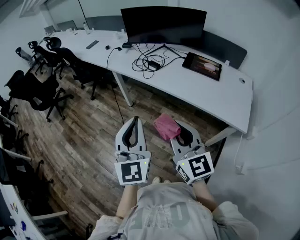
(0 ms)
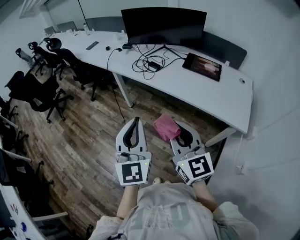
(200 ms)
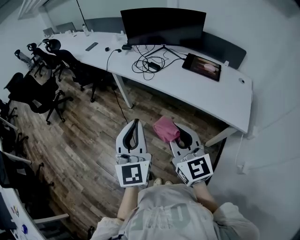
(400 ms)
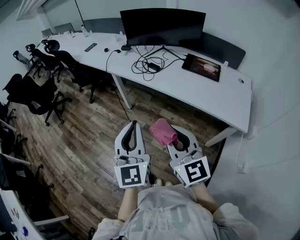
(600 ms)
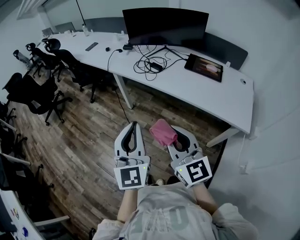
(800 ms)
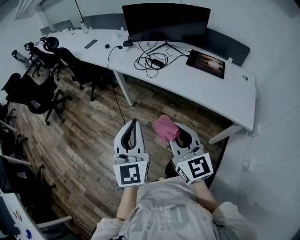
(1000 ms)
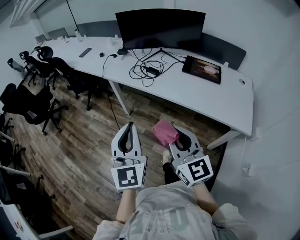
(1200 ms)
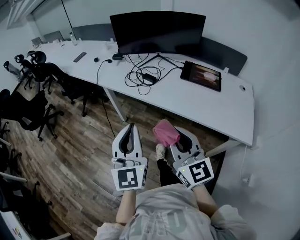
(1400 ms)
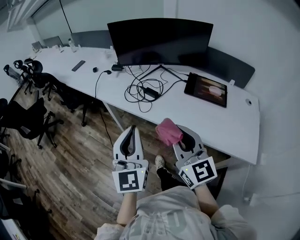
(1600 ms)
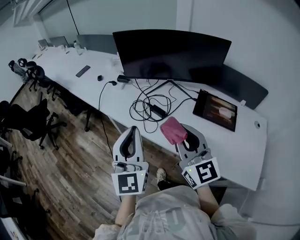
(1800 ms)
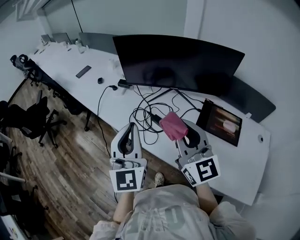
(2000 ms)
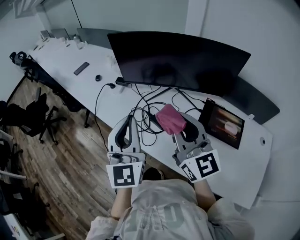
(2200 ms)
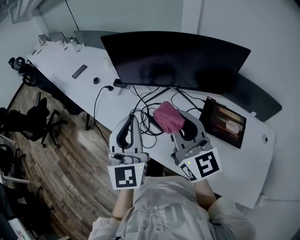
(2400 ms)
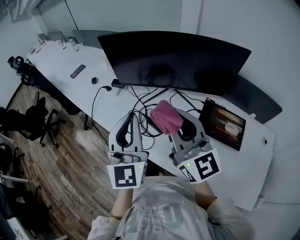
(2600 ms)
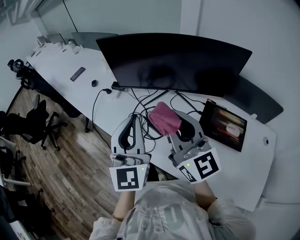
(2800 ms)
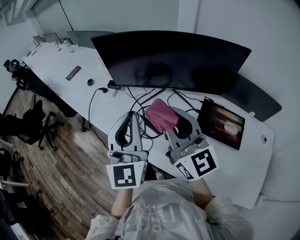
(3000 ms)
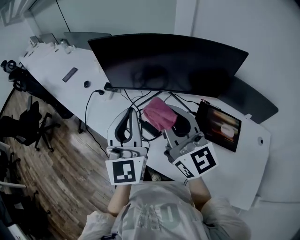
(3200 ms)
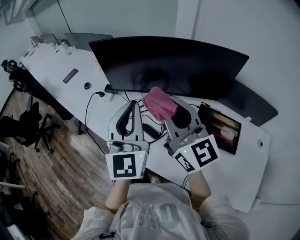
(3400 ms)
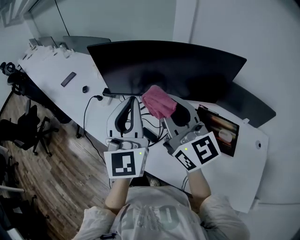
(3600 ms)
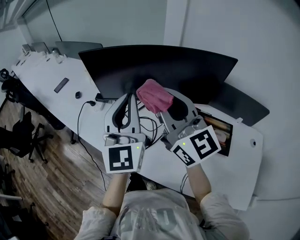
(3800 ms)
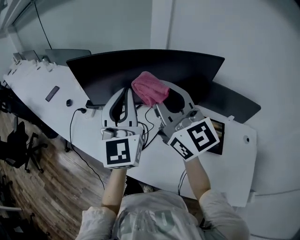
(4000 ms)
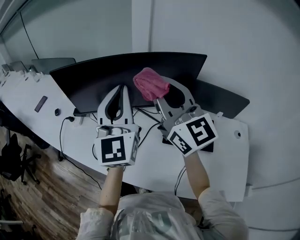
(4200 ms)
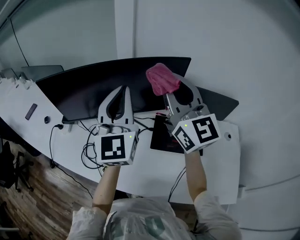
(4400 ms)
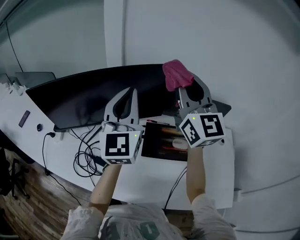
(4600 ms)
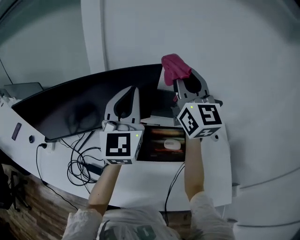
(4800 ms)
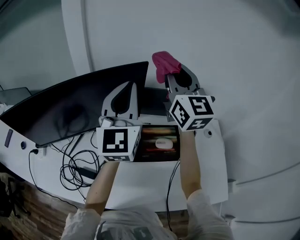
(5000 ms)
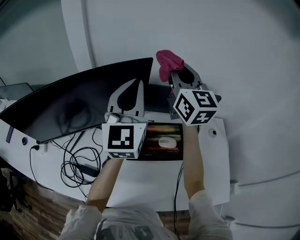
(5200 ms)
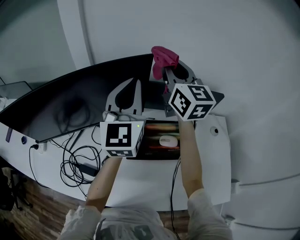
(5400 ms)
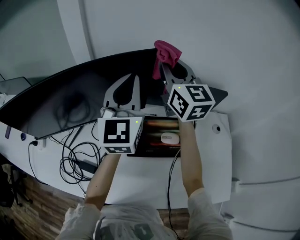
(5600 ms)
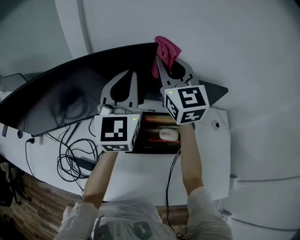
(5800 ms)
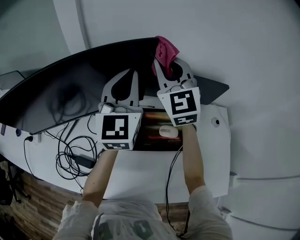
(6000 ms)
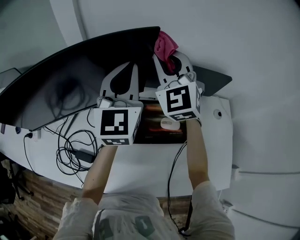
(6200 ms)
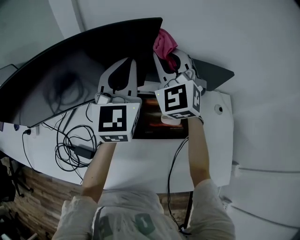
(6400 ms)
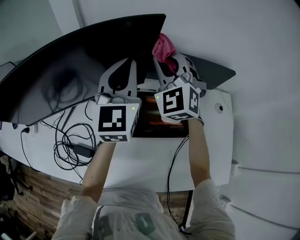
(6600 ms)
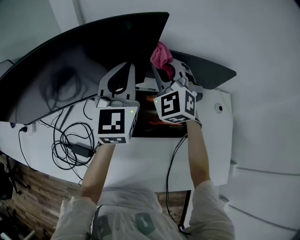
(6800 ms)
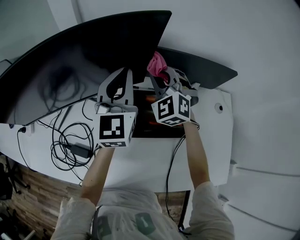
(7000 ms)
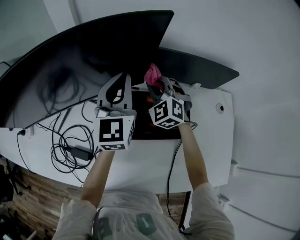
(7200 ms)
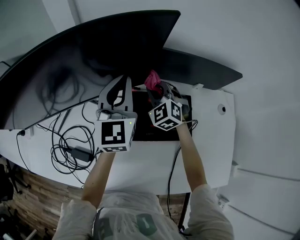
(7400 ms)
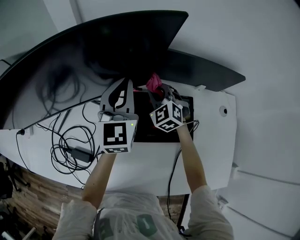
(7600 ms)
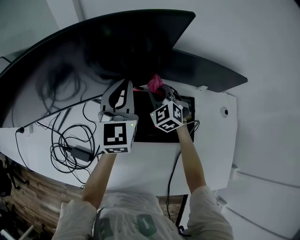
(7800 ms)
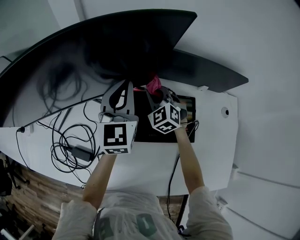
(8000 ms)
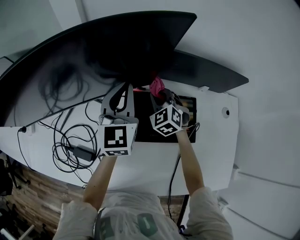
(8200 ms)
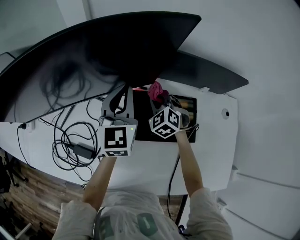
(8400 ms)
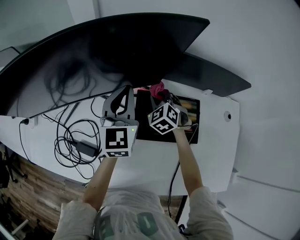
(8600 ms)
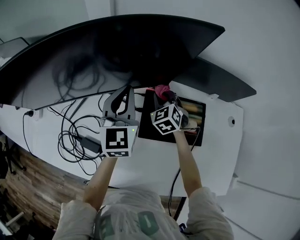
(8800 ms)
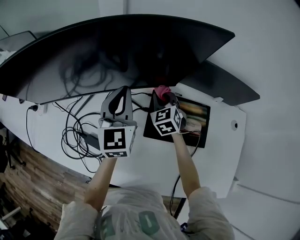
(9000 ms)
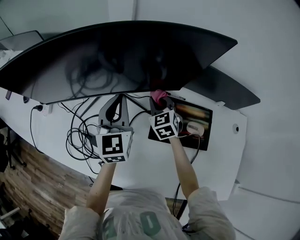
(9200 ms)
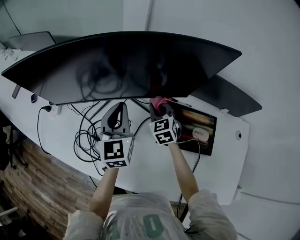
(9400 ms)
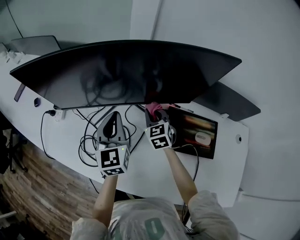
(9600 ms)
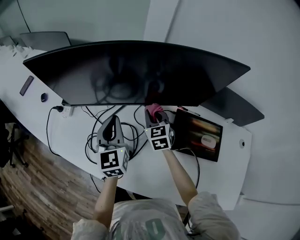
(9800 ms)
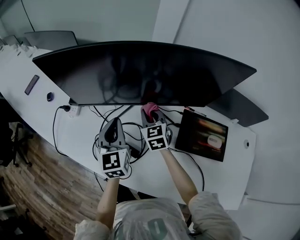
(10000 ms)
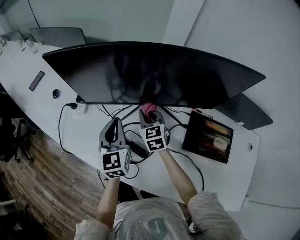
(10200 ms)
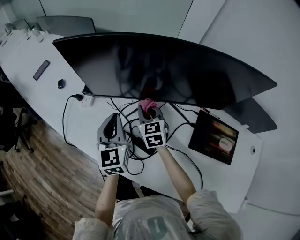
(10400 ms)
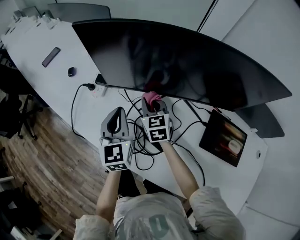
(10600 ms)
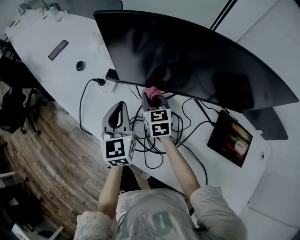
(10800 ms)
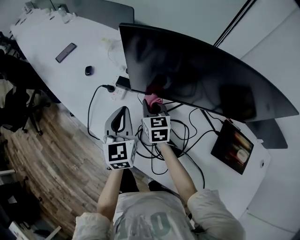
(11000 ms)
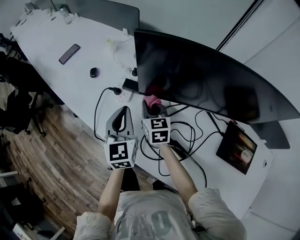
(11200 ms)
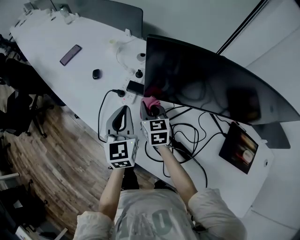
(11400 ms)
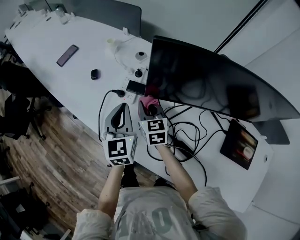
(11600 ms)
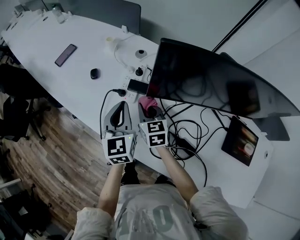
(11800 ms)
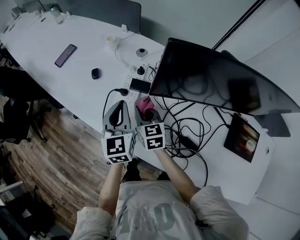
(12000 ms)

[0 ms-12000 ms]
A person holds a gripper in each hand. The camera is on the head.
0 ms to 1600 ms: The two grippers go approximately 25 cm forward.
1600 ms to 3000 ms: Both grippers travel together forward, about 30 cm.
3000 ms to 4400 ms: The right gripper is displaced to the right and upward by some 25 cm, and rotates roughly 20 degrees; the left gripper travels to the right, forward and upward by some 20 cm.
4400 ms to 6000 ms: The left gripper goes about 25 cm to the right, forward and downward, while the right gripper moves forward, to the right and downward, about 25 cm, and swivels some 30 degrees.
6000 ms to 7600 ms: The left gripper goes roughly 15 cm downward, while the right gripper shifts about 30 cm downward, and angles its fingers downward, by some 40 degrees.
7600 ms to 9000 ms: The two grippers go roughly 10 cm to the left.
9000 ms to 10400 ms: Both grippers travel together to the left, some 30 cm. The left gripper swivels about 20 degrees, while the right gripper rotates about 20 degrees.
10400 ms to 12000 ms: The left gripper travels to the left and forward by some 20 cm. Meanwhile the right gripper shifts roughly 25 cm to the left.

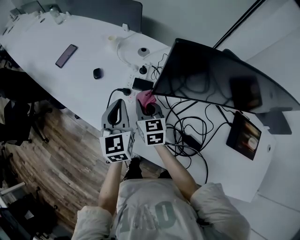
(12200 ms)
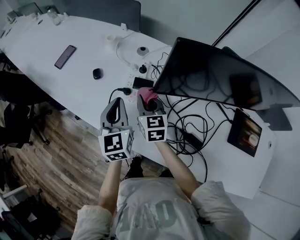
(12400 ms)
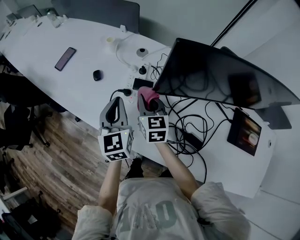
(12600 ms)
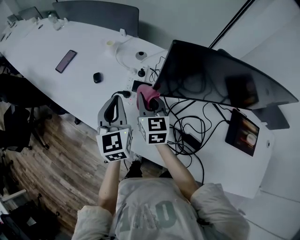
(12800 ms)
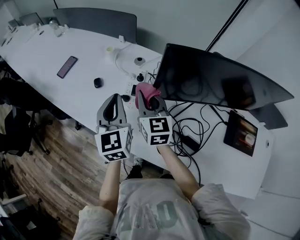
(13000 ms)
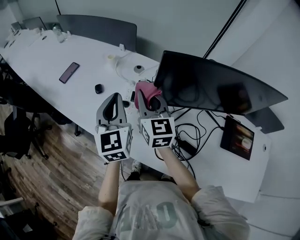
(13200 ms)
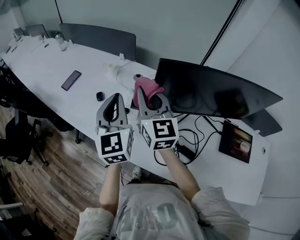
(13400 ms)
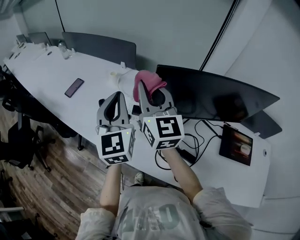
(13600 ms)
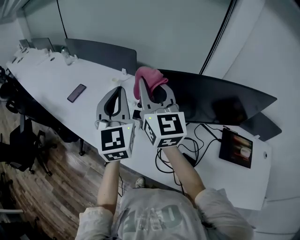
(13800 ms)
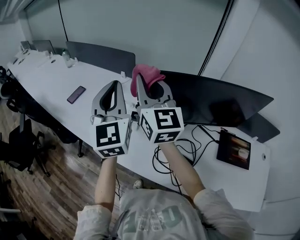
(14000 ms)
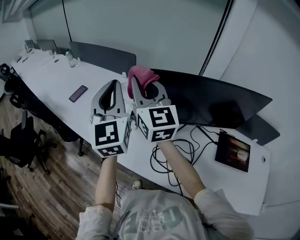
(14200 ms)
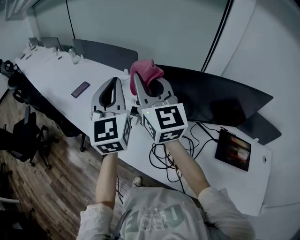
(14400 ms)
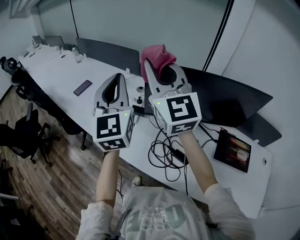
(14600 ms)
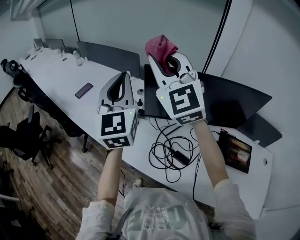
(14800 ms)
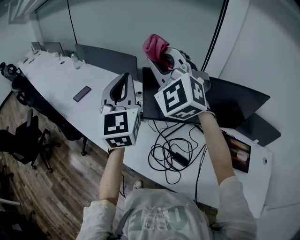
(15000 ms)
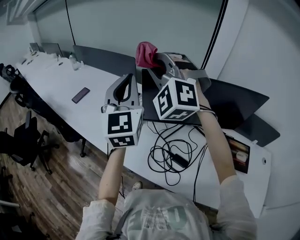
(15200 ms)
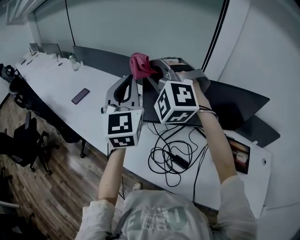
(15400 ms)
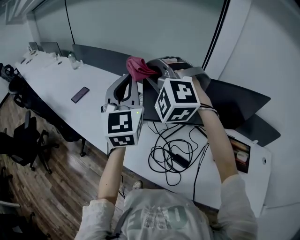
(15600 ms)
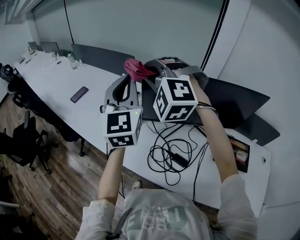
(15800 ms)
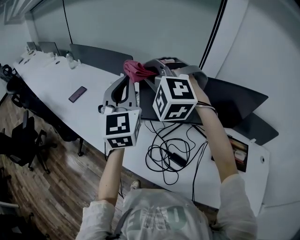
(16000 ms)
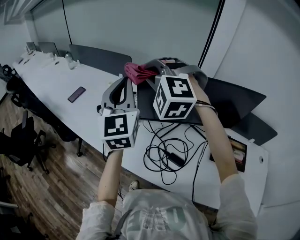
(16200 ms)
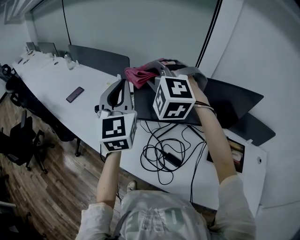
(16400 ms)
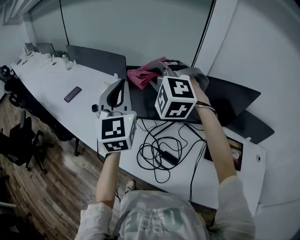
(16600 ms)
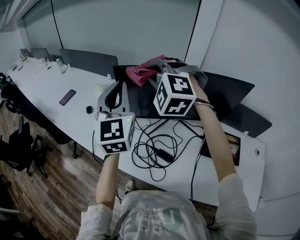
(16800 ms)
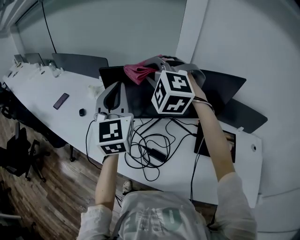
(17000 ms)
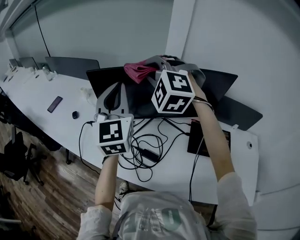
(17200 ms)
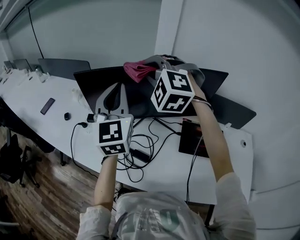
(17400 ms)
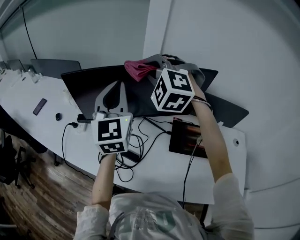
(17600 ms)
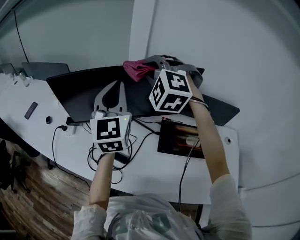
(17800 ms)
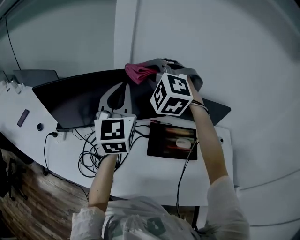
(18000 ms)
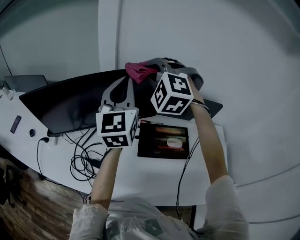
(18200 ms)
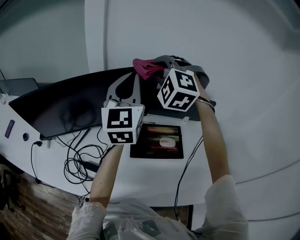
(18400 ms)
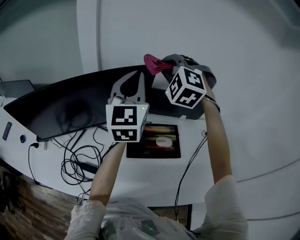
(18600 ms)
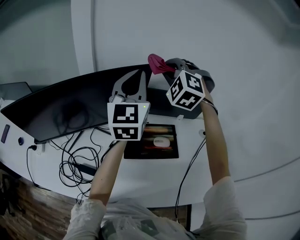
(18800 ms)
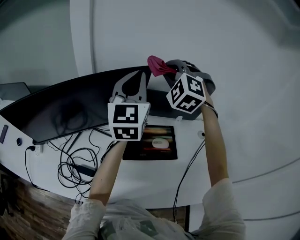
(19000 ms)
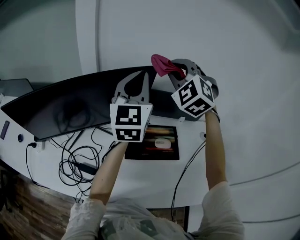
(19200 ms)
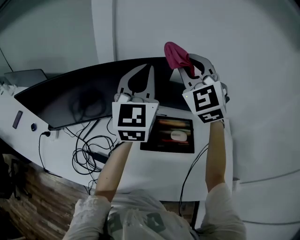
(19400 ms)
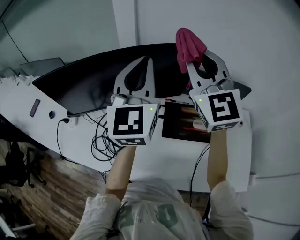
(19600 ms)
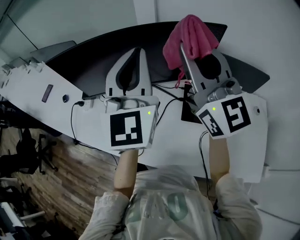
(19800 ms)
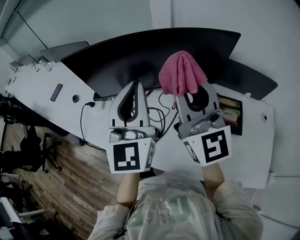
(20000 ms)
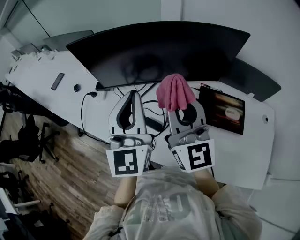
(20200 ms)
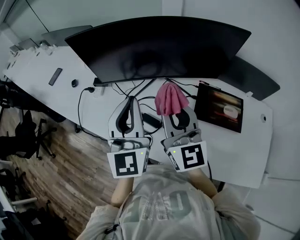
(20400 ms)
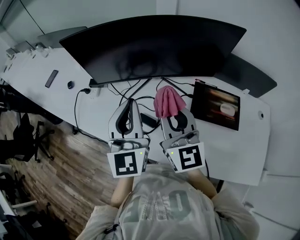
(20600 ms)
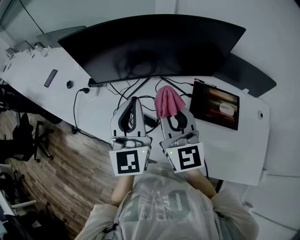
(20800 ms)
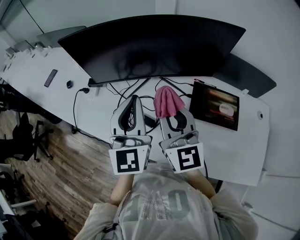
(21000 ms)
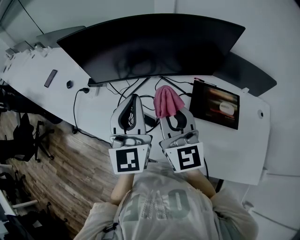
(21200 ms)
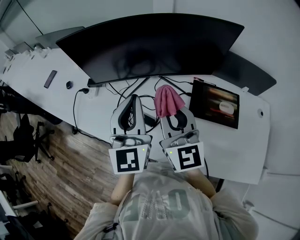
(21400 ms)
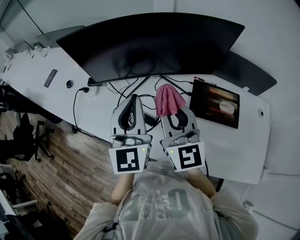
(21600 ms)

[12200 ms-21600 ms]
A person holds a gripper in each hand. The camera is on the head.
12200 ms to 13800 ms: Both grippers travel together upward, about 30 cm. The right gripper angles its fingers upward, by about 40 degrees; the left gripper rotates approximately 20 degrees.
13800 ms to 15400 ms: The left gripper shifts about 10 cm to the right and upward. The right gripper goes upward and returns, approximately 10 cm each way, and twists approximately 80 degrees counterclockwise, seen from behind.
15400 ms to 17000 ms: The two grippers go approximately 10 cm to the right.
17000 ms to 18400 ms: The grippers both shift to the right by some 40 cm. The left gripper turns by some 30 degrees, while the right gripper swivels approximately 20 degrees.
18400 ms to 20000 ms: The right gripper goes upward and returns, roughly 5 cm each way, and tilts its fingers roughly 50 degrees upward; the left gripper shifts by about 25 cm.
20000 ms to 21600 ms: Both grippers move downward, approximately 10 cm.

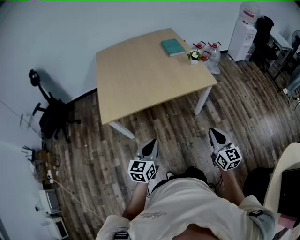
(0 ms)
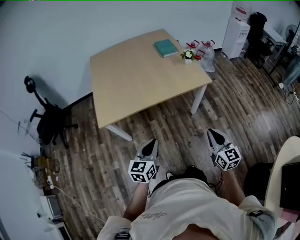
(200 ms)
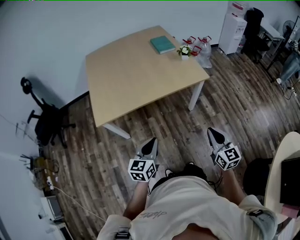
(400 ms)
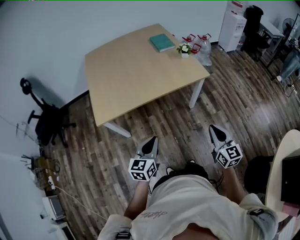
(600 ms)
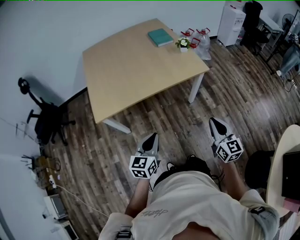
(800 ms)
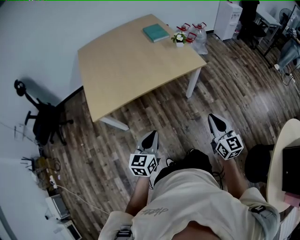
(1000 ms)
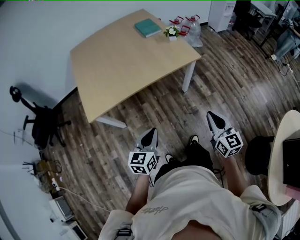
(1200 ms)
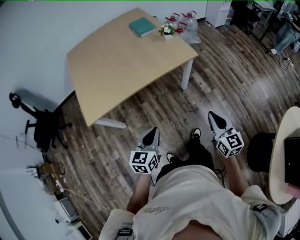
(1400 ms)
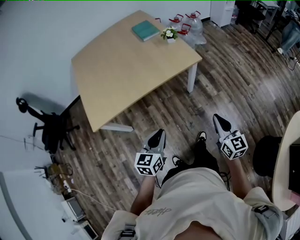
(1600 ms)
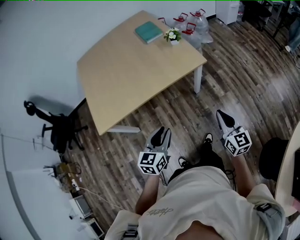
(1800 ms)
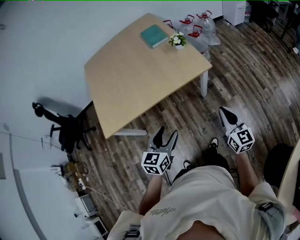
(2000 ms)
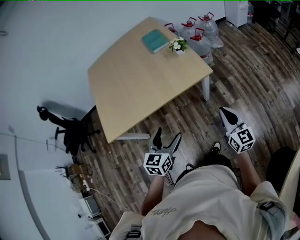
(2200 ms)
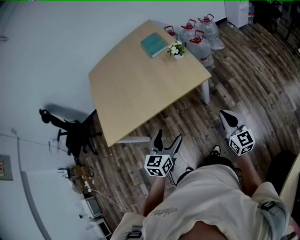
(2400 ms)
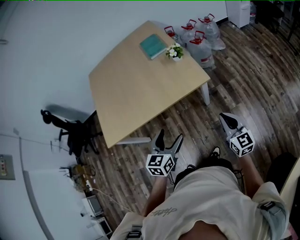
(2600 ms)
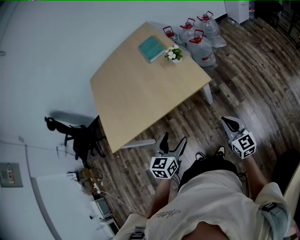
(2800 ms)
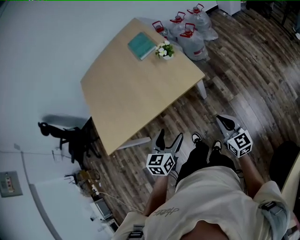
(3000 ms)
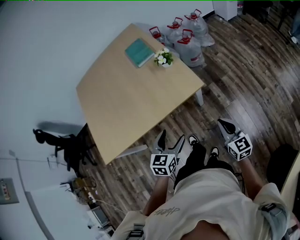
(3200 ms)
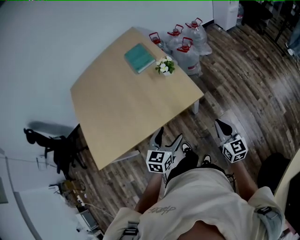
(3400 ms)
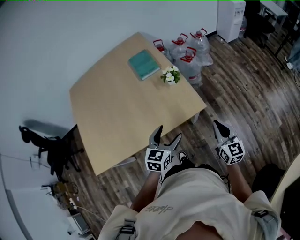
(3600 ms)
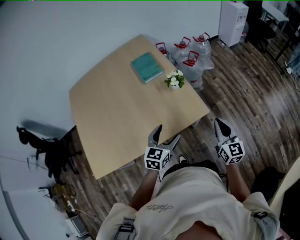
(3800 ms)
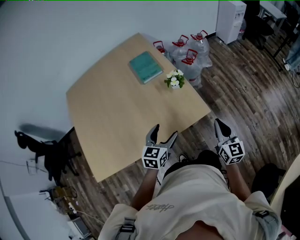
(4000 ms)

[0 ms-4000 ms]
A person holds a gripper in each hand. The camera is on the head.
0 ms to 1400 ms: Both grippers travel together to the right, about 5 cm.
1400 ms to 2600 ms: The grippers both shift forward and to the right by approximately 20 cm. The left gripper opens up.
2600 ms to 4000 ms: Both grippers travel together forward, roughly 20 cm.
